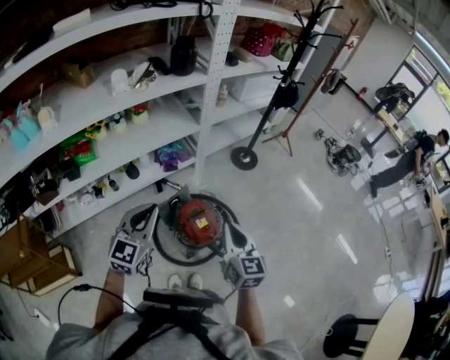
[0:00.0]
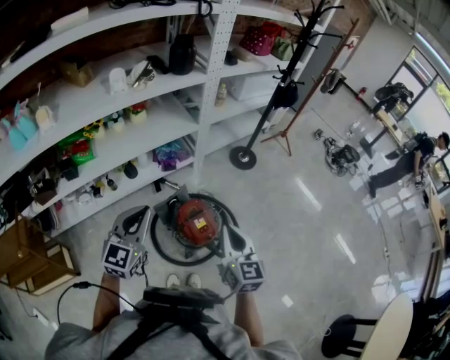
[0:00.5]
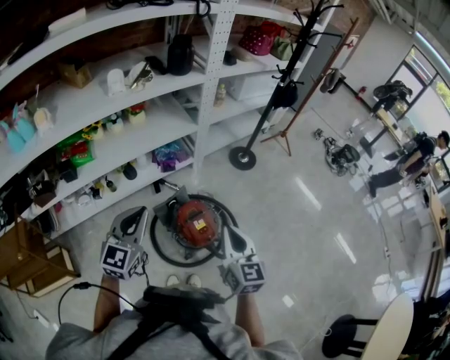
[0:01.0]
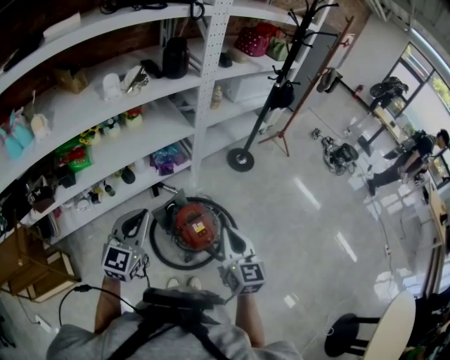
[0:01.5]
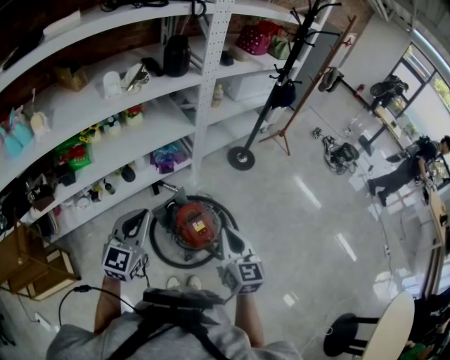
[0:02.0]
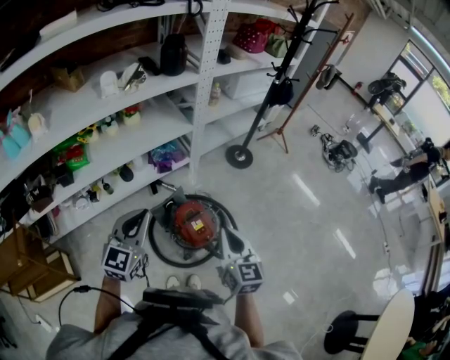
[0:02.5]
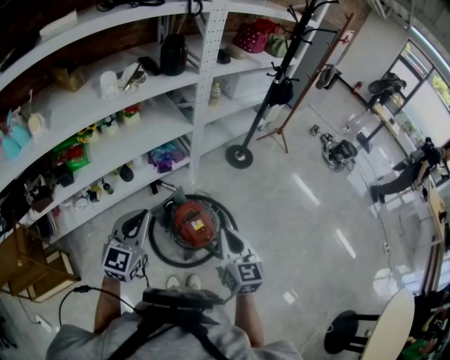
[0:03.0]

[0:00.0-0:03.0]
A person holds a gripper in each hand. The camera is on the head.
0.0 to 1.5 s: The grippers stay close to where they were, moving slightly.
1.5 to 3.0 s: Neither gripper changes place.

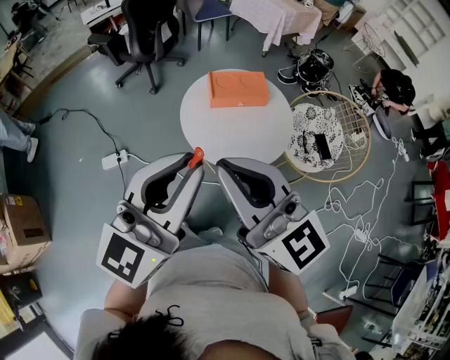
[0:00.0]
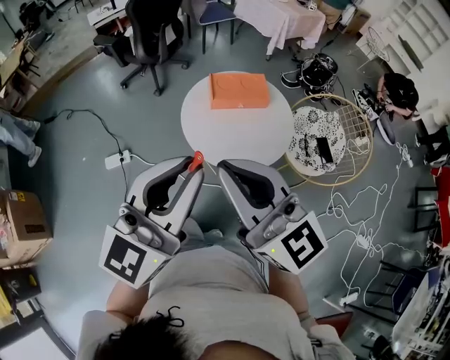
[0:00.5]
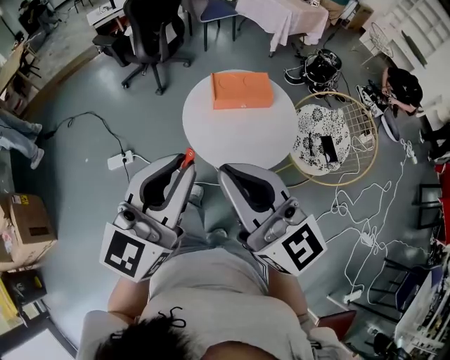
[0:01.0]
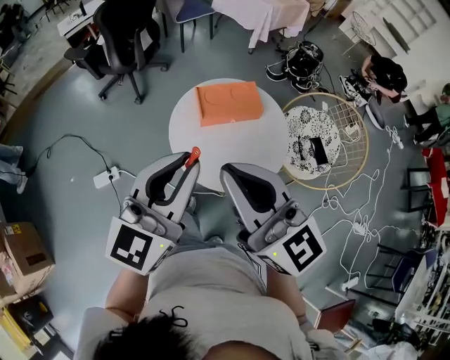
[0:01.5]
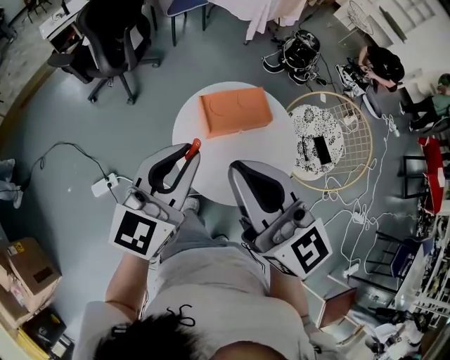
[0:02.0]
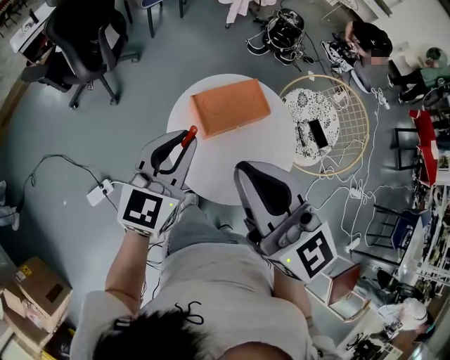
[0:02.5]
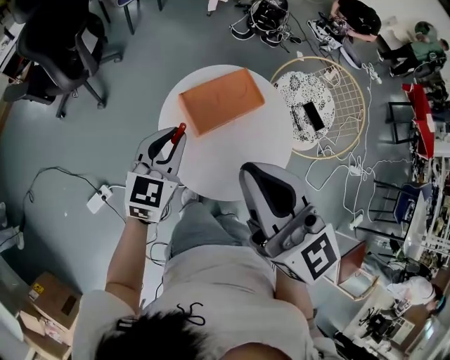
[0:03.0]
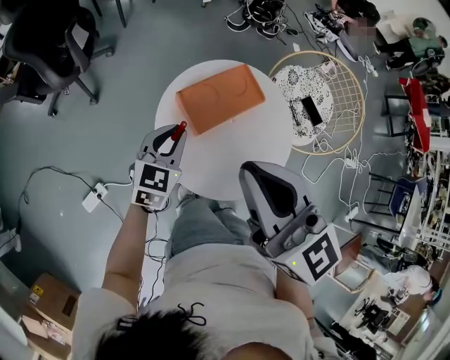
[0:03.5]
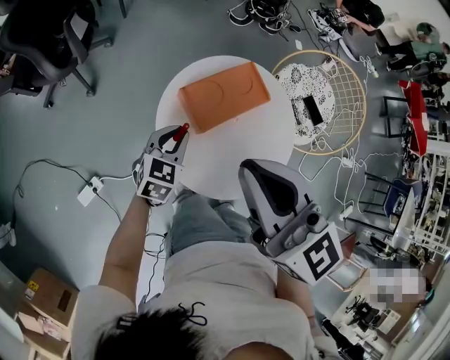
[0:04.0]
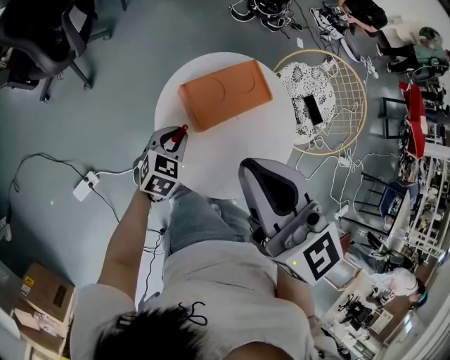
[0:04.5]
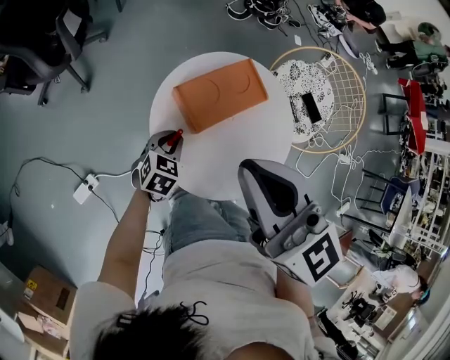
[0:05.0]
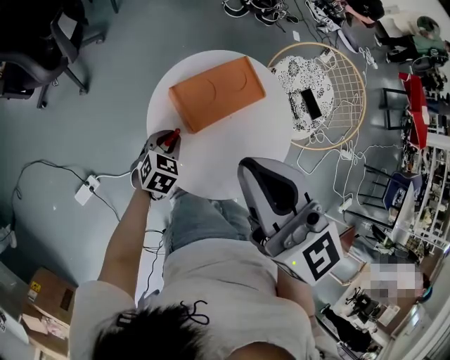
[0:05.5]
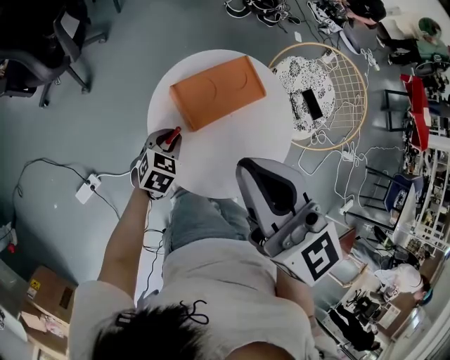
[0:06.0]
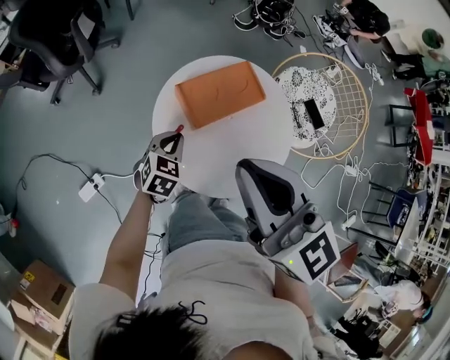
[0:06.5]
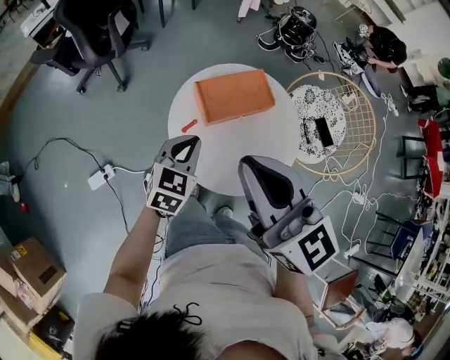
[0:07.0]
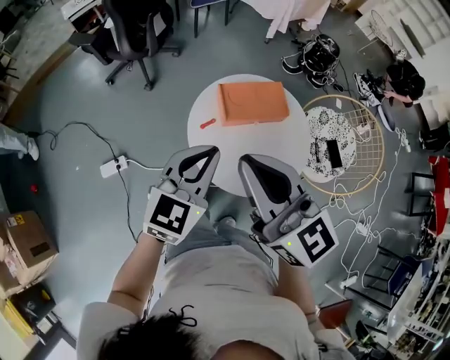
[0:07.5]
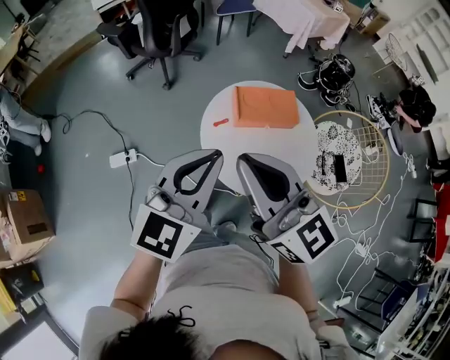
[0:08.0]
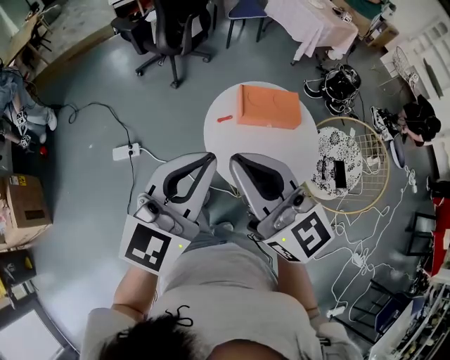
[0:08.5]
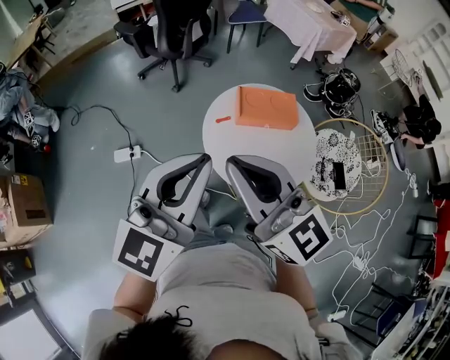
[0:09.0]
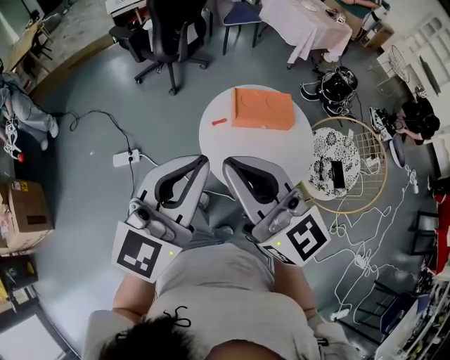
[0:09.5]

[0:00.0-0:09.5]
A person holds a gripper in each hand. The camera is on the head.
0.0 to 2.0 s: Both grippers move forward, approximately 25 cm.
2.0 to 4.0 s: The right gripper shifts about 10 cm forward and downward. The left gripper moves downward and forward, about 30 cm, and points its fingers roughly 30 degrees further downward.
4.0 to 5.5 s: The left gripper travels downward by about 10 cm.
5.5 to 7.5 s: The left gripper moves upward and backward, about 35 cm, and tilts its fingers roughly 30 degrees upward; the right gripper shifts approximately 15 cm backward, and rotates approximately 20 degrees.
7.5 to 9.5 s: The left gripper travels upward and backward by some 15 cm, and rotates some 20 degrees. The right gripper goes about 10 cm backward.

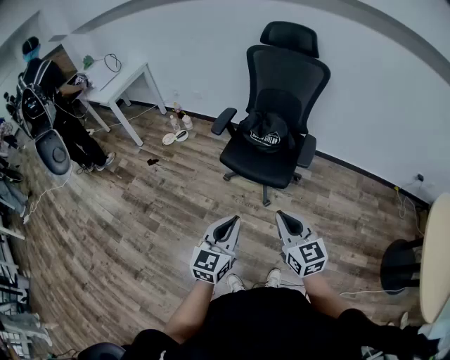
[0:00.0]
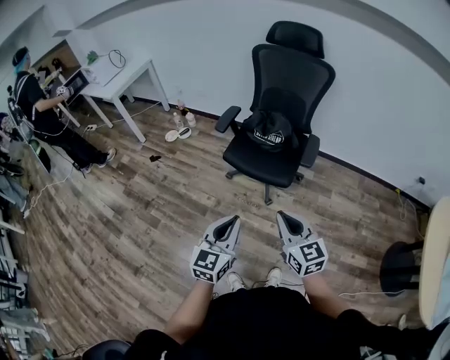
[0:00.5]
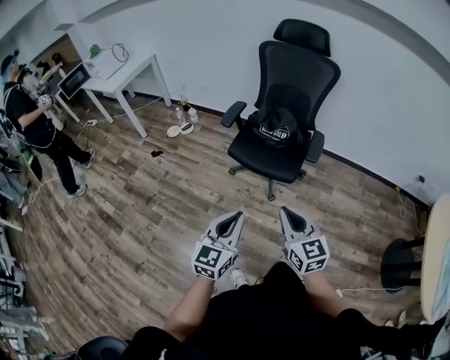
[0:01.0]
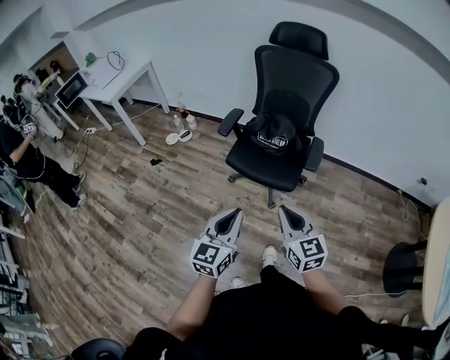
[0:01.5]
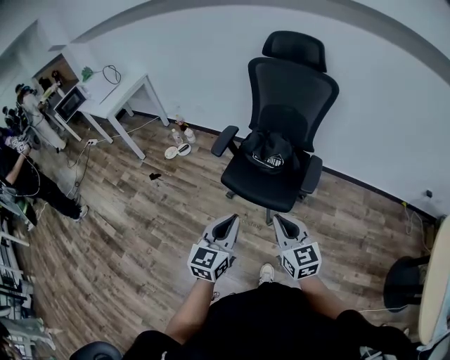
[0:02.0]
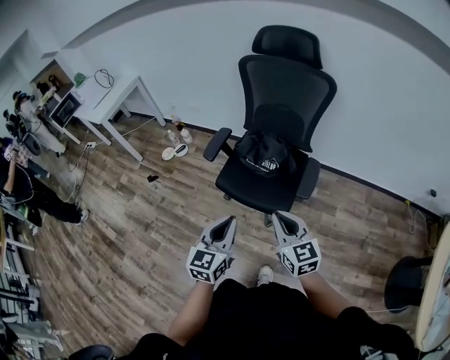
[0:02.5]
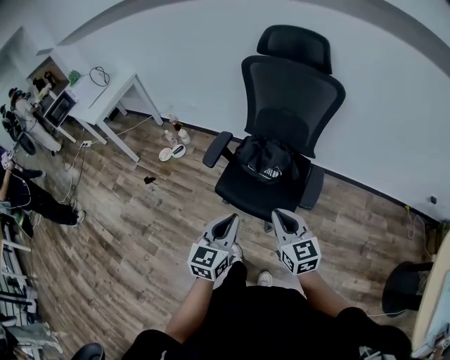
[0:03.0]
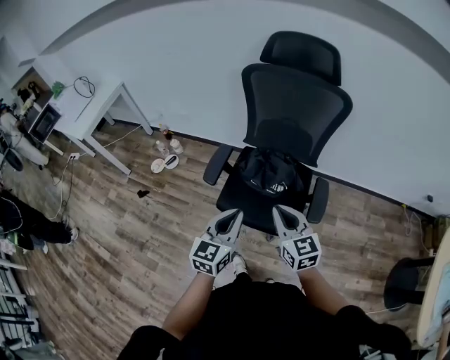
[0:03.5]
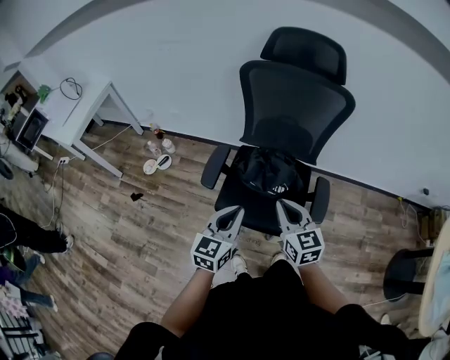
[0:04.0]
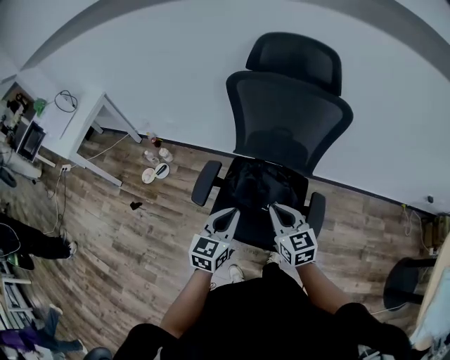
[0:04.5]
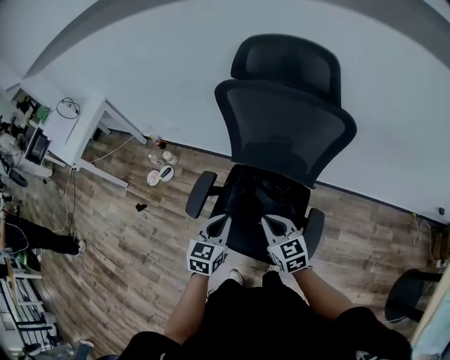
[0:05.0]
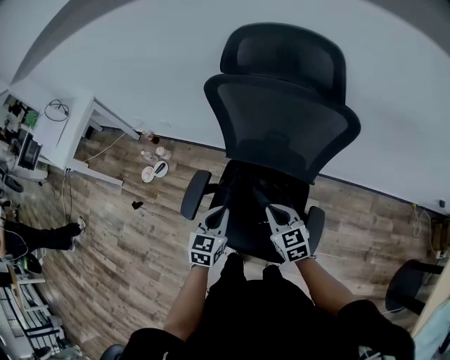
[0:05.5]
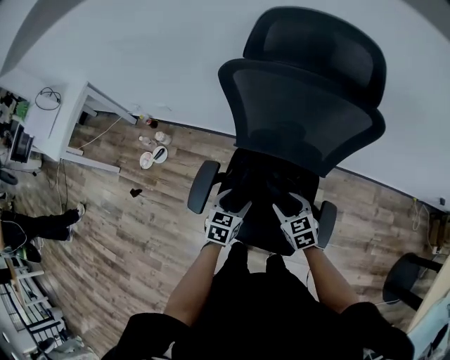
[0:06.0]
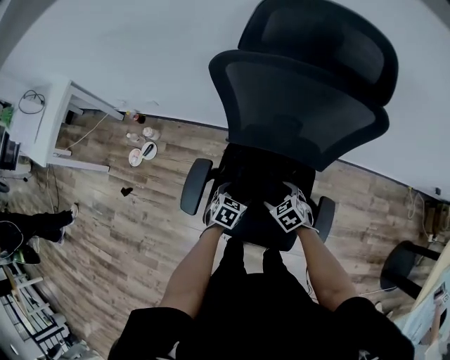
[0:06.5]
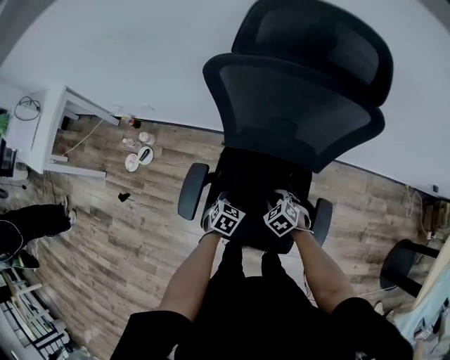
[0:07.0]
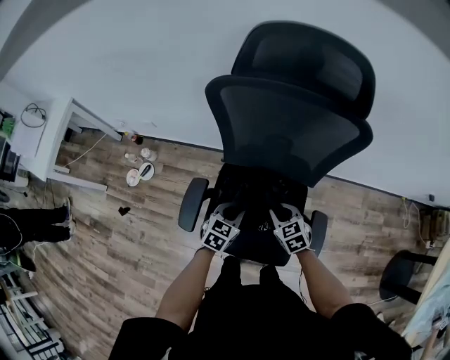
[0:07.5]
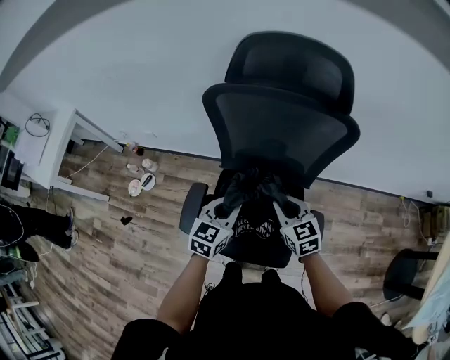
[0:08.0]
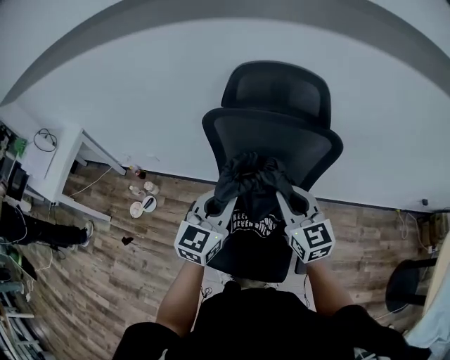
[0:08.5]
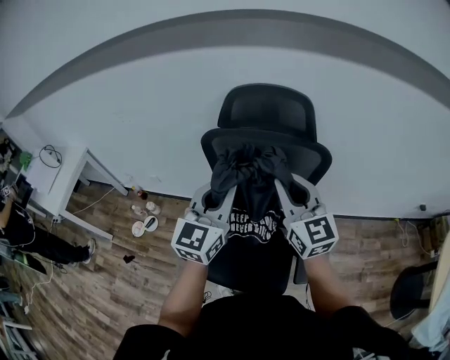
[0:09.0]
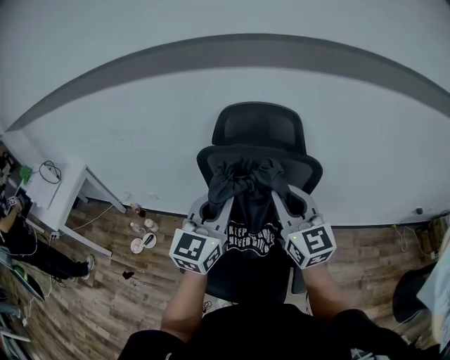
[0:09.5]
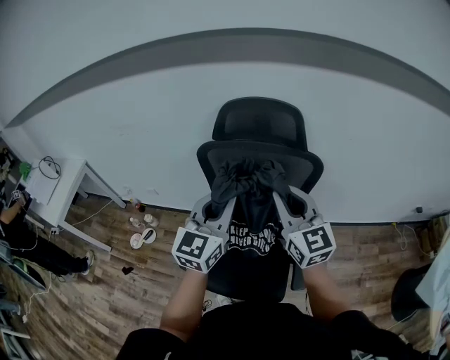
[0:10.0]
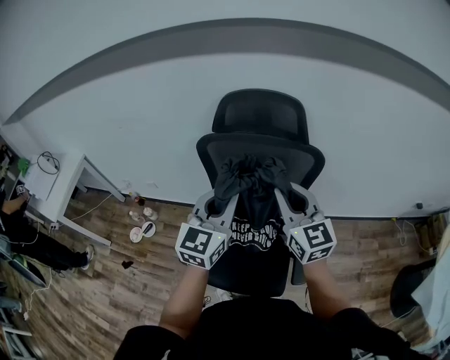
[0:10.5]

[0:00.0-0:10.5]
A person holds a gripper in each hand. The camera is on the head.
0.0 to 2.0 s: The two grippers go about 15 cm forward.
2.0 to 4.0 s: Both grippers move forward, roughly 25 cm.
4.0 to 6.5 s: The grippers both shift downward and forward by about 35 cm. The left gripper tips its fingers downward by roughly 40 degrees, and opens. Meanwhile the right gripper points its fingers some 40 degrees further downward, and opens.
6.5 to 8.5 s: The grippers both shift upward by about 40 cm. The left gripper tips its fingers upward by approximately 50 degrees, and closes up. The right gripper tips its fingers upward by roughly 50 degrees, and closes its fingers.
8.5 to 10.5 s: Both grippers move upward, about 10 cm.

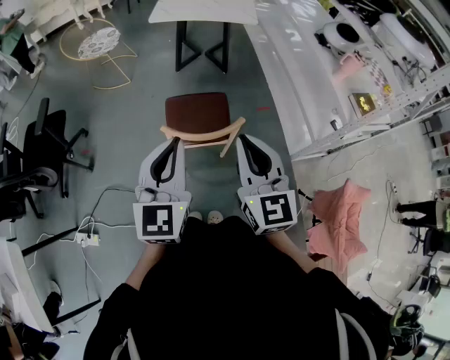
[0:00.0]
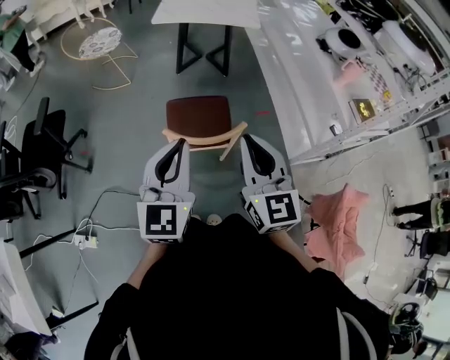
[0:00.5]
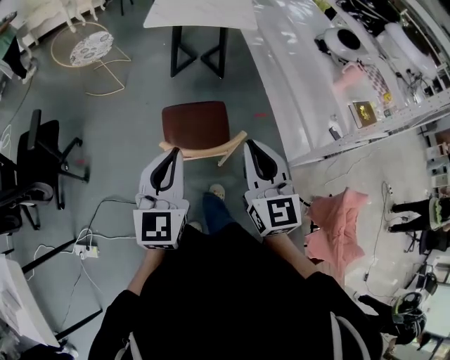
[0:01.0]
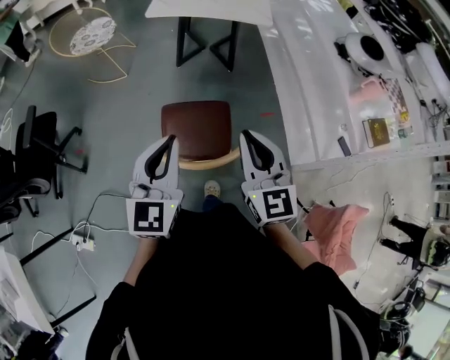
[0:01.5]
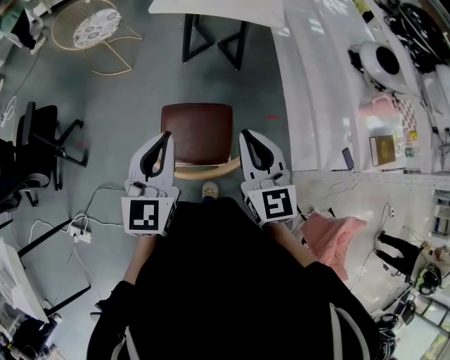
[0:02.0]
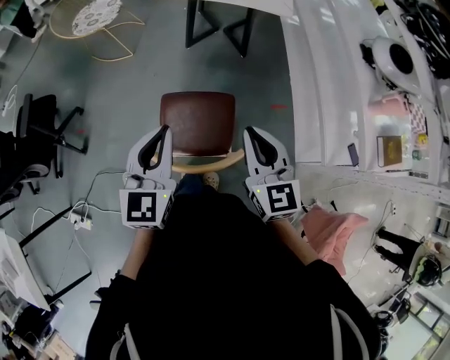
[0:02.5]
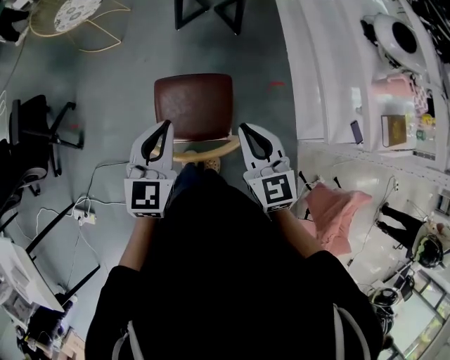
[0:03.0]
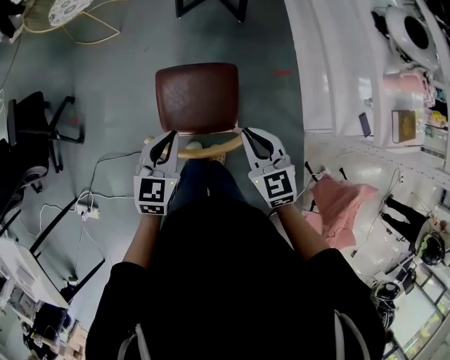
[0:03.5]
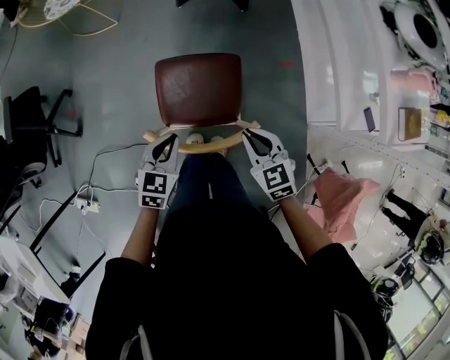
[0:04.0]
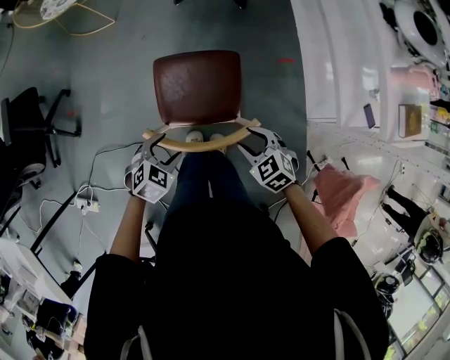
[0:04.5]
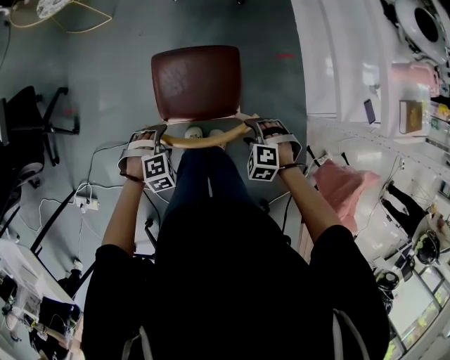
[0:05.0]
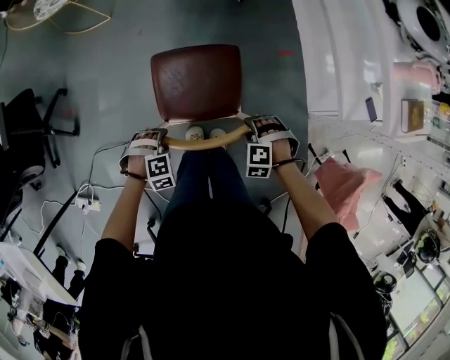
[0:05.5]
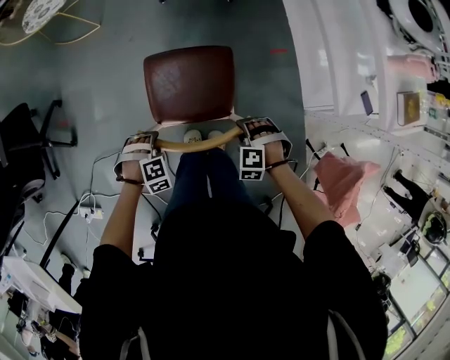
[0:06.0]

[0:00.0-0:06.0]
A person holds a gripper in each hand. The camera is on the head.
0.0 to 2.0 s: The two grippers go some 25 cm forward.
2.0 to 4.0 s: Both grippers travel together downward, some 25 cm. The right gripper angles its fingers downward, by some 30 degrees. Meanwhile the left gripper angles its fingers downward, by about 30 degrees.
4.0 to 6.0 s: Both grippers travel together downward, some 15 cm. The left gripper rolls clockwise, seen from behind, by some 60 degrees, and opens its fingers; the right gripper rolls counterclockwise, seen from behind, by roughly 50 degrees, and opens its fingers.
